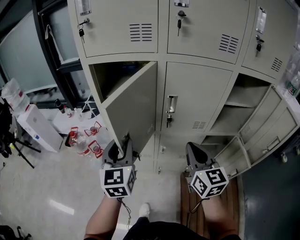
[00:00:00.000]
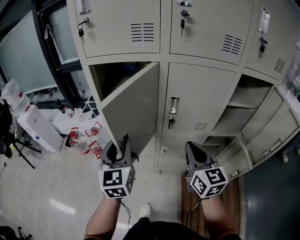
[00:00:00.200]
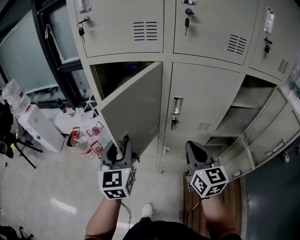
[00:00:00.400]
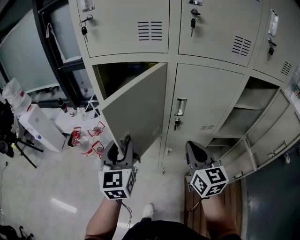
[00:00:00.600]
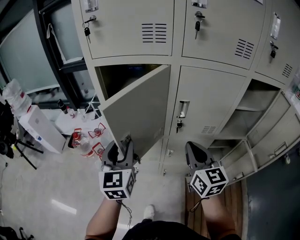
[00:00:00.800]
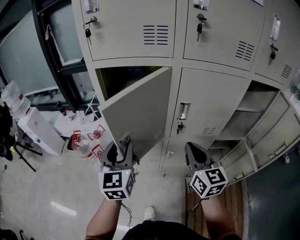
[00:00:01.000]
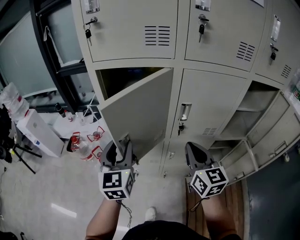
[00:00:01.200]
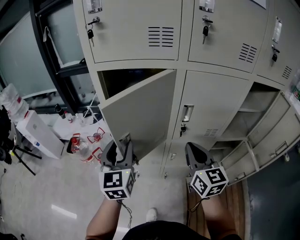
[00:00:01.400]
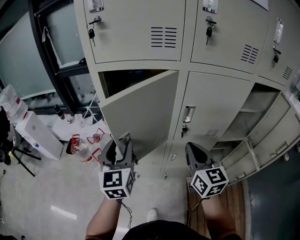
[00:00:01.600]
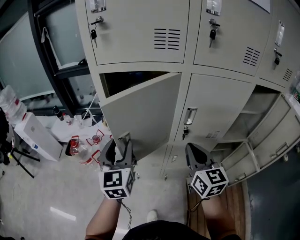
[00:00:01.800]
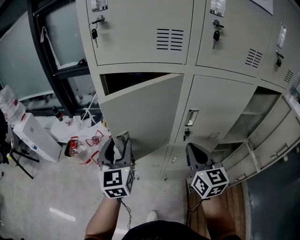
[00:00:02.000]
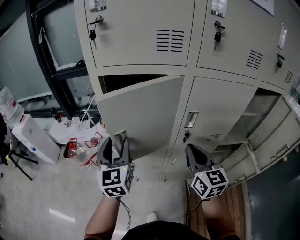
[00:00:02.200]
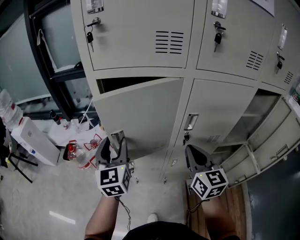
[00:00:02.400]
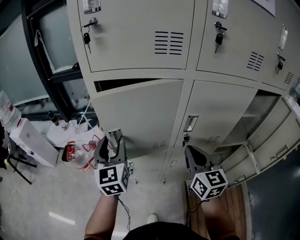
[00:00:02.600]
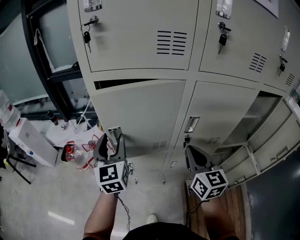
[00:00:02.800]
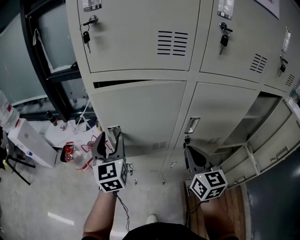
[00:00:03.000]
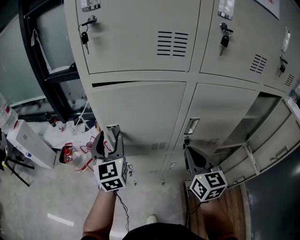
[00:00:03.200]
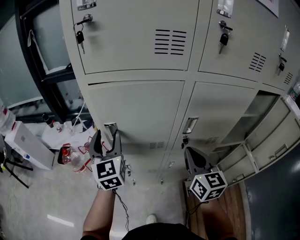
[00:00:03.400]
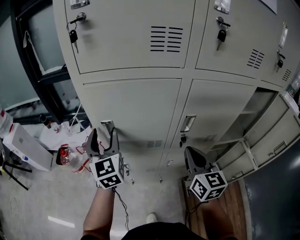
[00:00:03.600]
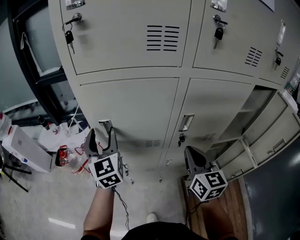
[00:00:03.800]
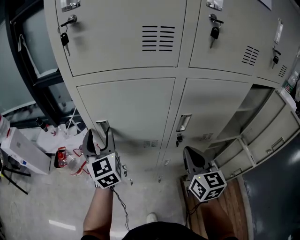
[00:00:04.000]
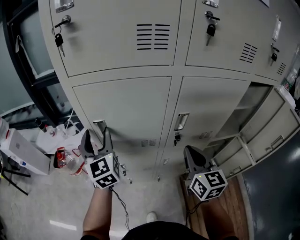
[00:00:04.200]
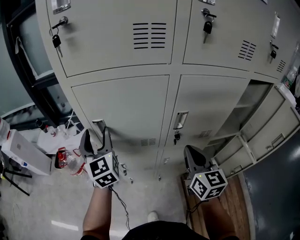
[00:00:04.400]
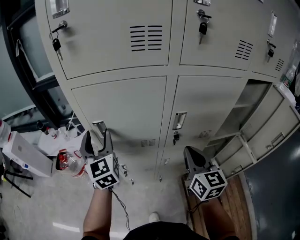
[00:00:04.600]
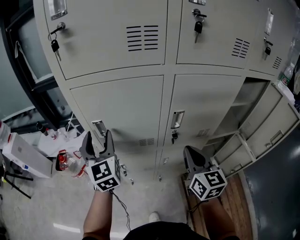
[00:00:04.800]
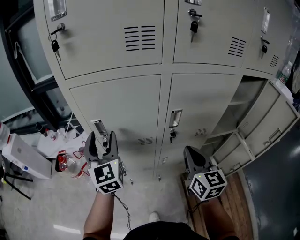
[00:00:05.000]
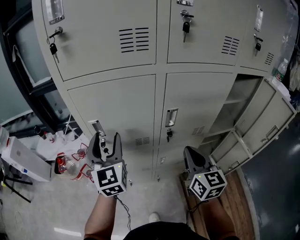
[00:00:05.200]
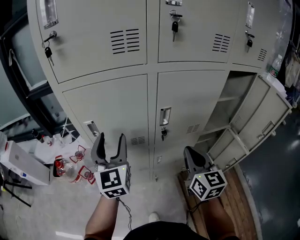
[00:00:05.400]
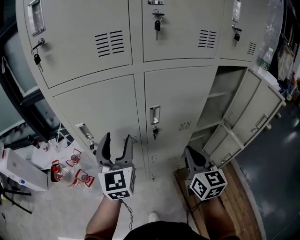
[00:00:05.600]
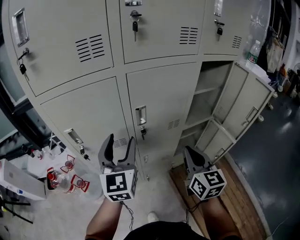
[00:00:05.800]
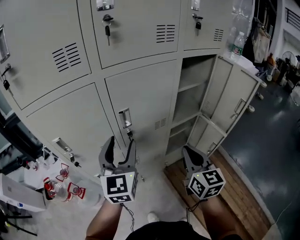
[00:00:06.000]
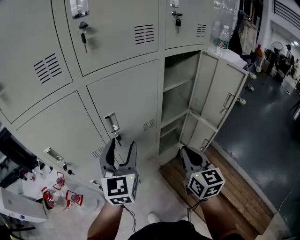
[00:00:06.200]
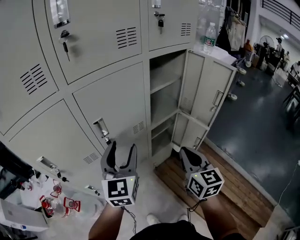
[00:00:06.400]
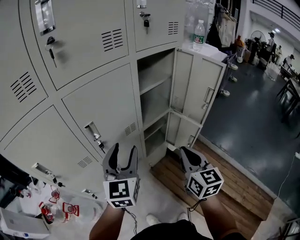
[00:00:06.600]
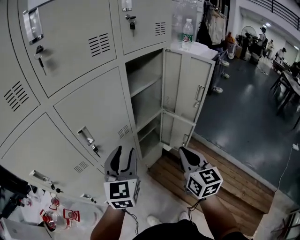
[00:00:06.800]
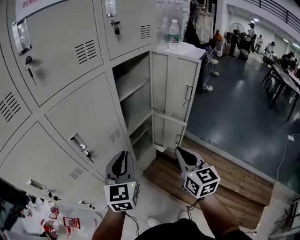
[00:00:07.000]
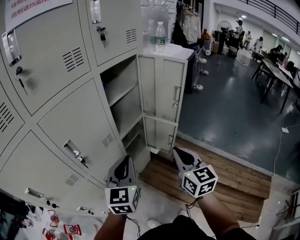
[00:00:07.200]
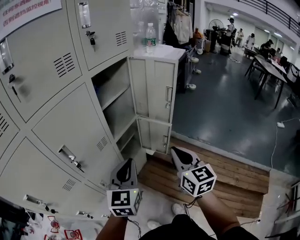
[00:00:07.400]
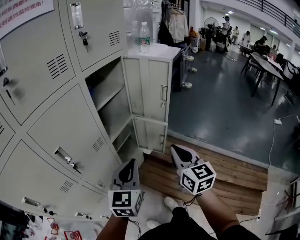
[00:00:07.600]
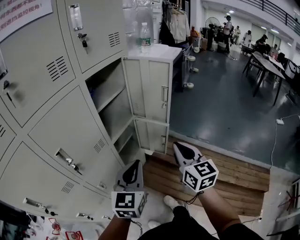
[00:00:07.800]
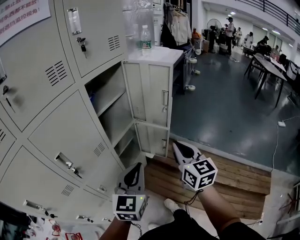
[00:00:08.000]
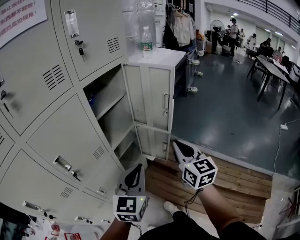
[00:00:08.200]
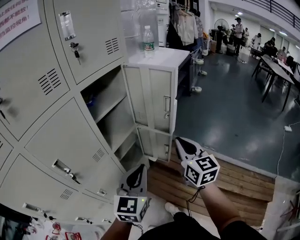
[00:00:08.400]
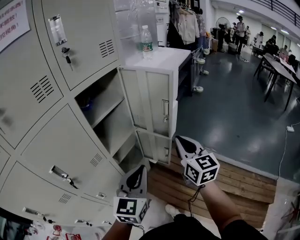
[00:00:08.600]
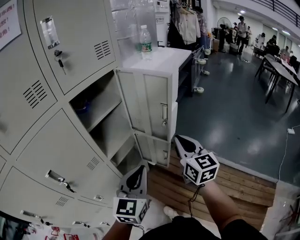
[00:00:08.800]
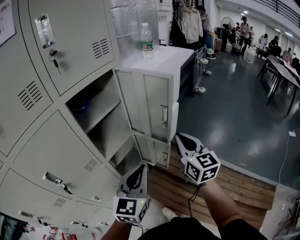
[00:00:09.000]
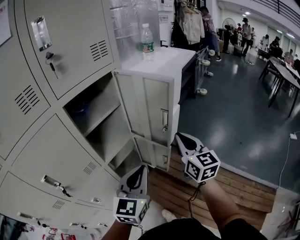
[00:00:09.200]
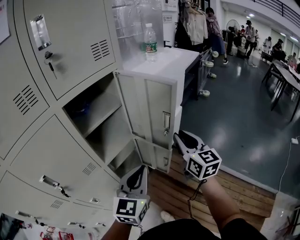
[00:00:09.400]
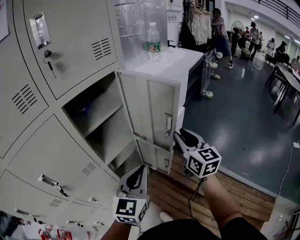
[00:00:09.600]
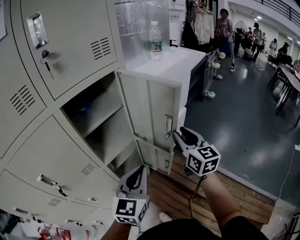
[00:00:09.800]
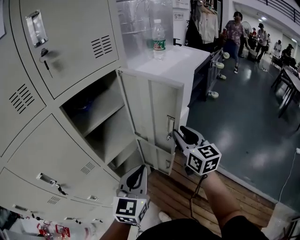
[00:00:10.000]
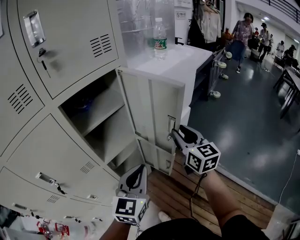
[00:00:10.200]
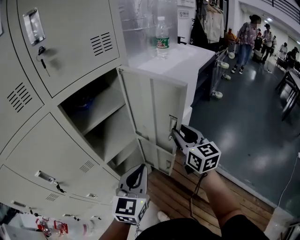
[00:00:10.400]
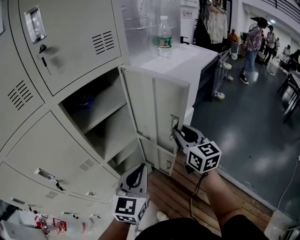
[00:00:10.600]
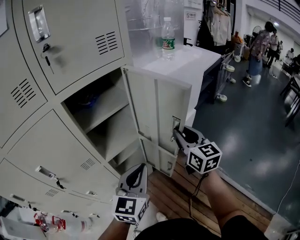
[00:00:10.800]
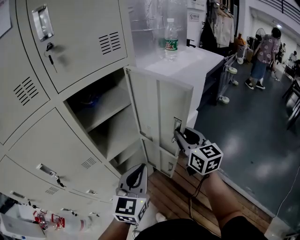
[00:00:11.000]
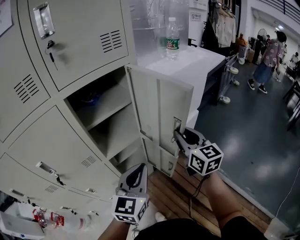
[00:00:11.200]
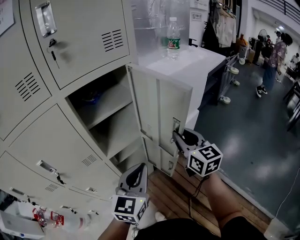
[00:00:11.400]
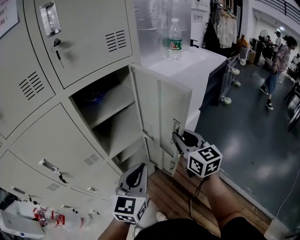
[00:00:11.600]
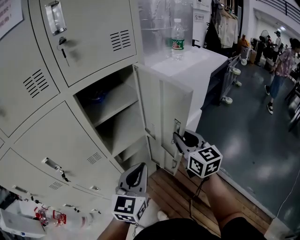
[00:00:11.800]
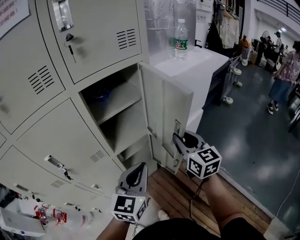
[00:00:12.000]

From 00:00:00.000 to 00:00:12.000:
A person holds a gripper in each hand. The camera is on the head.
From 00:00:00.000 to 00:00:01.600: Both grippers travel together forward and to the left, roughly 10 cm.
From 00:00:01.600 to 00:00:03.000: The left gripper is displaced forward by some 10 cm.
From 00:00:03.000 to 00:00:04.400: The grippers move only a little.
From 00:00:04.400 to 00:00:06.000: The left gripper moves some 30 cm, and turns by roughly 40 degrees. The right gripper moves about 20 cm.
From 00:00:06.000 to 00:00:07.600: The right gripper ends up approximately 20 cm from where it was, and rotates about 30 degrees; the left gripper moves approximately 25 cm, rotates roughly 40 degrees, and closes its fingers.
From 00:00:07.600 to 00:00:09.000: The grippers both shift forward and to the right by some 15 cm.
From 00:00:09.000 to 00:00:10.400: The right gripper travels forward by some 10 cm, and opens; the left gripper moves forward, roughly 5 cm.
From 00:00:10.400 to 00:00:12.000: The right gripper moves to the left, approximately 5 cm.

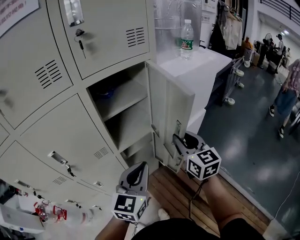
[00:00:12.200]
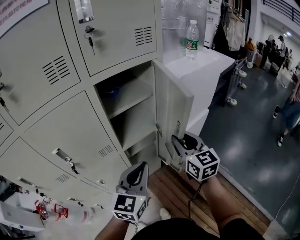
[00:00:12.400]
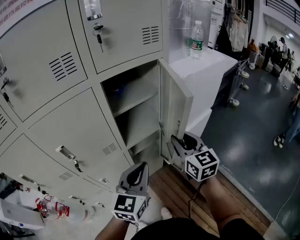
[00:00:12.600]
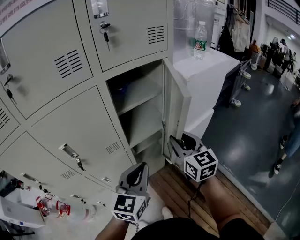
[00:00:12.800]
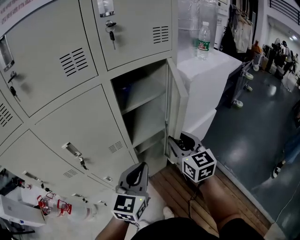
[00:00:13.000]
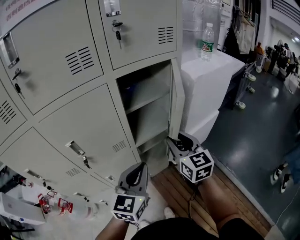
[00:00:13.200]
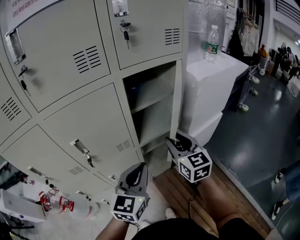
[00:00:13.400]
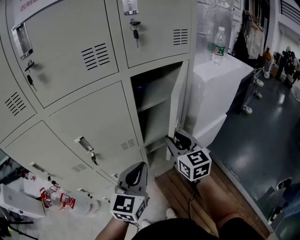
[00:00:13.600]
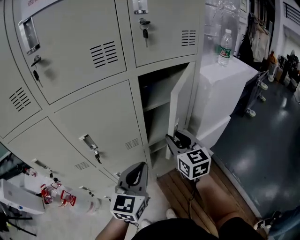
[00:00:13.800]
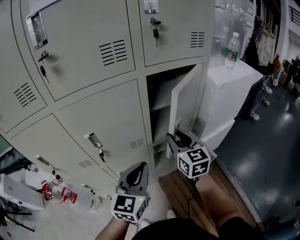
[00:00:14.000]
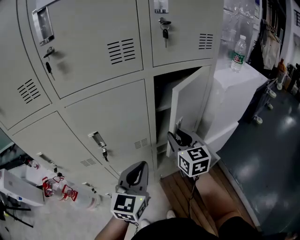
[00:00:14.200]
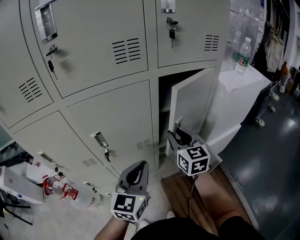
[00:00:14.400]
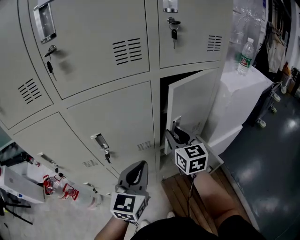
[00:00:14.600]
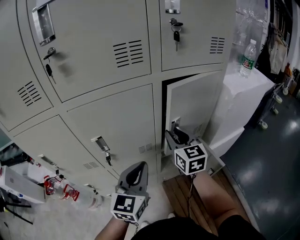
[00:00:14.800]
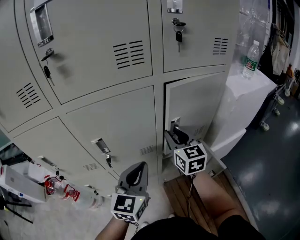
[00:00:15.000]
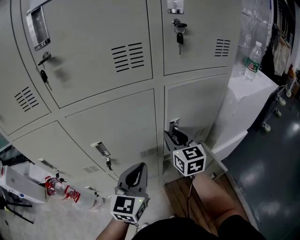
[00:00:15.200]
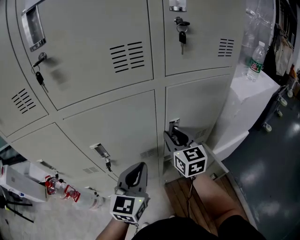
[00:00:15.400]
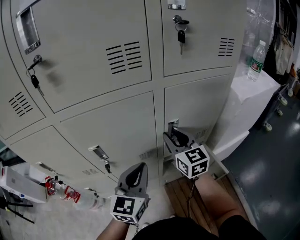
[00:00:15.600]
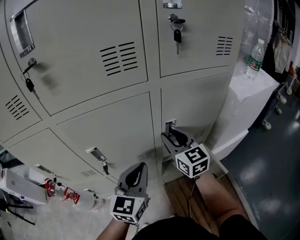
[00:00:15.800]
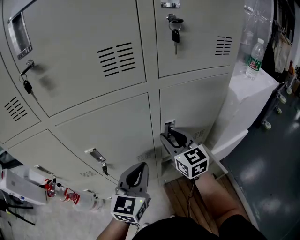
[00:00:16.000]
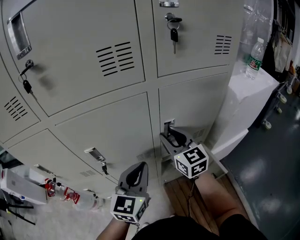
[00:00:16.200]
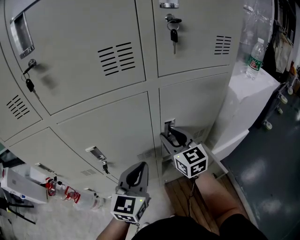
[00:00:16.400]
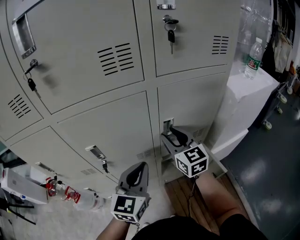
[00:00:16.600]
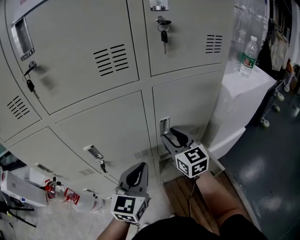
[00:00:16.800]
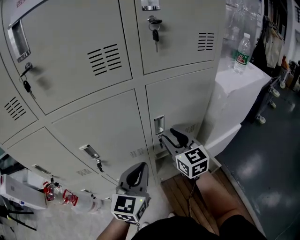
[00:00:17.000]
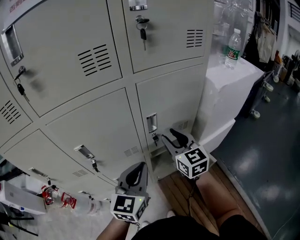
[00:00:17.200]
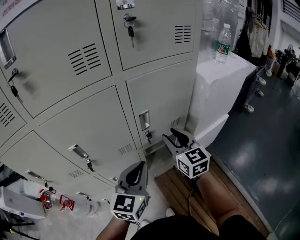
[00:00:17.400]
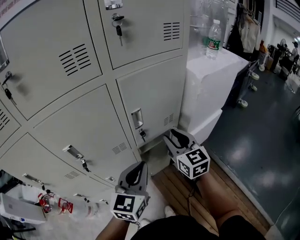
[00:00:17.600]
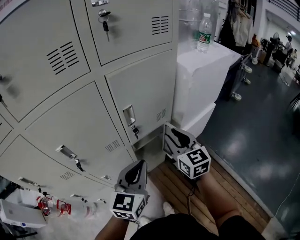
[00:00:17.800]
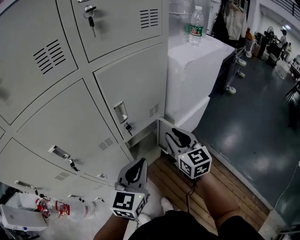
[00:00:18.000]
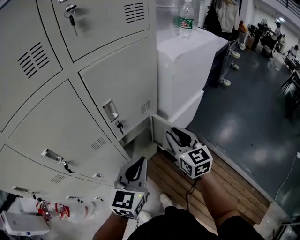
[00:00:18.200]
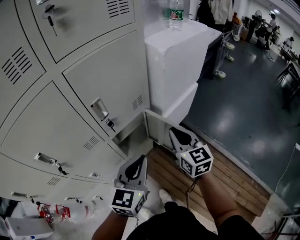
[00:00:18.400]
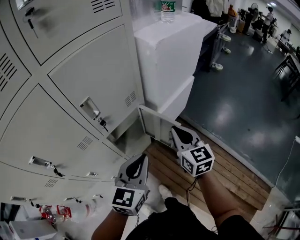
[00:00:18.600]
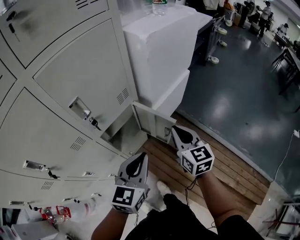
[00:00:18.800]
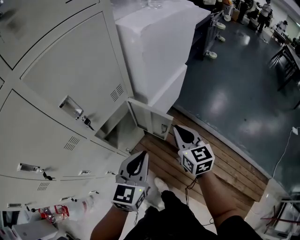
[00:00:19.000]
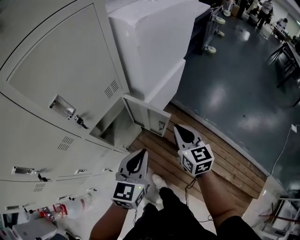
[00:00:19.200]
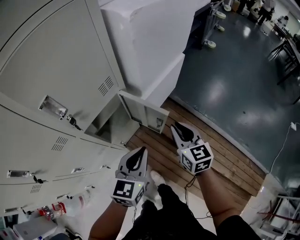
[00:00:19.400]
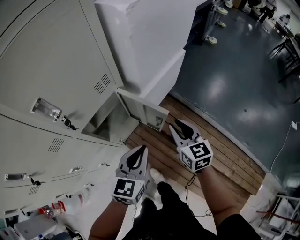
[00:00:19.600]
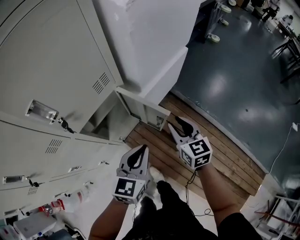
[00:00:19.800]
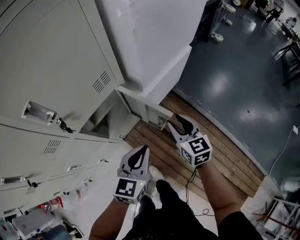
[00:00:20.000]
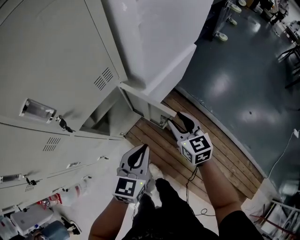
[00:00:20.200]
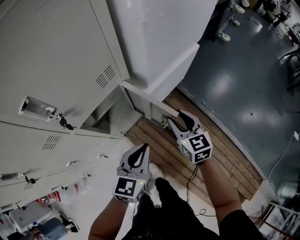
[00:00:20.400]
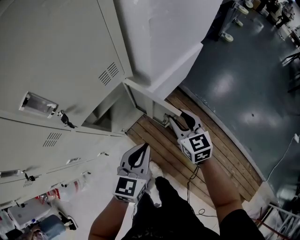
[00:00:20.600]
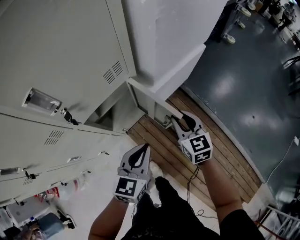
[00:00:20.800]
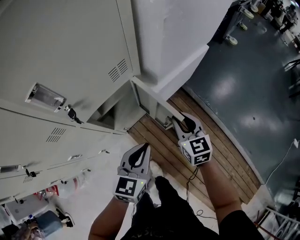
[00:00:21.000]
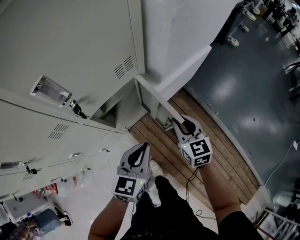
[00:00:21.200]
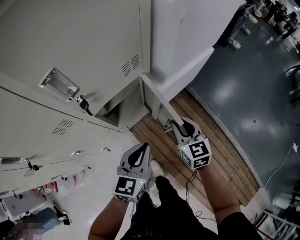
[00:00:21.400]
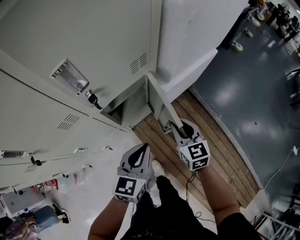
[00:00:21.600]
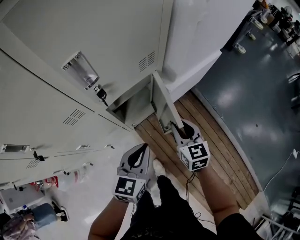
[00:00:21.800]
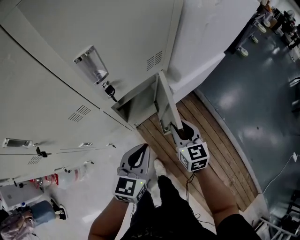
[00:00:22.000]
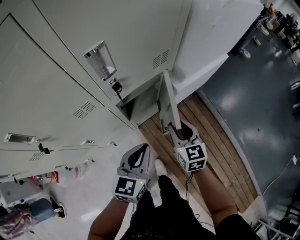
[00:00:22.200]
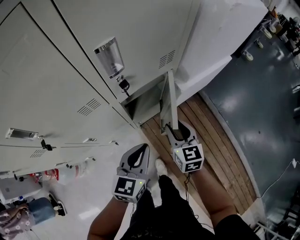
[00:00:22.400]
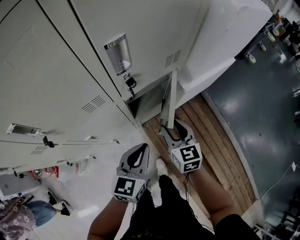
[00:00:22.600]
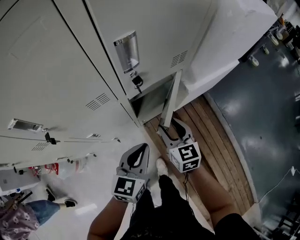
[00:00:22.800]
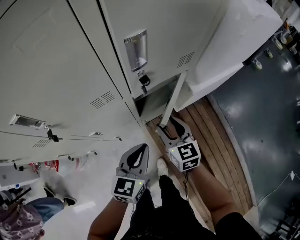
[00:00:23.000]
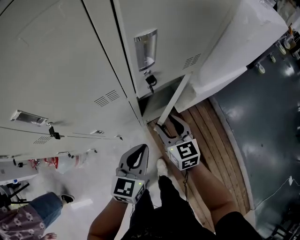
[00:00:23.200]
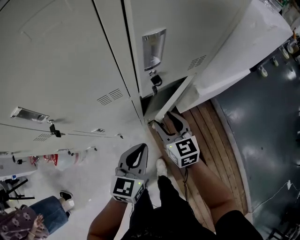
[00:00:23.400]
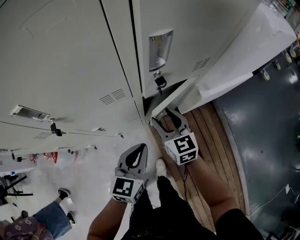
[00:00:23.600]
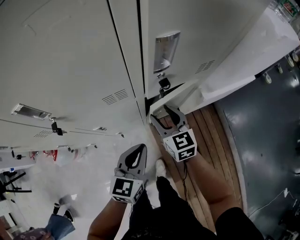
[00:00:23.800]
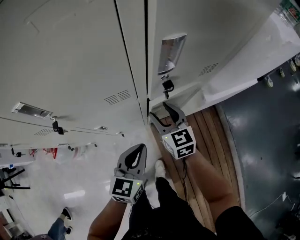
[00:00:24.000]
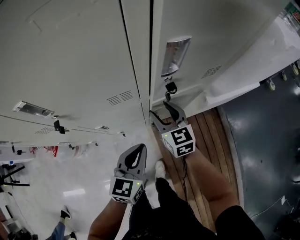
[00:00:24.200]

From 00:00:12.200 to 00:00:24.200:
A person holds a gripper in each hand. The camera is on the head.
From 00:00:12.200 to 00:00:13.800: Both grippers travel together to the left, some 15 cm.
From 00:00:13.800 to 00:00:15.200: The left gripper shifts approximately 10 cm forward and to the left, while the right gripper goes some 10 cm forward and to the left.
From 00:00:15.200 to 00:00:16.600: The grippers move only a little.
From 00:00:16.600 to 00:00:18.200: The right gripper changes place by some 25 cm, and changes its angle by some 30 degrees. Meanwhile the left gripper changes place by approximately 15 cm, and rotates roughly 30 degrees.
From 00:00:18.200 to 00:00:19.800: The right gripper goes some 25 cm downward and to the right, and closes, then opens again; the left gripper shifts roughly 20 cm downward, to the right and forward.
From 00:00:19.800 to 00:00:21.200: Both grippers move to the left, some 5 cm.
From 00:00:21.200 to 00:00:22.600: Both grippers move to the left, approximately 15 cm. The right gripper opens up.
From 00:00:22.600 to 00:00:24.200: The left gripper goes some 5 cm to the left. Meanwhile the right gripper is displaced to the left and forward by some 15 cm, and rotates roughly 20 degrees.
